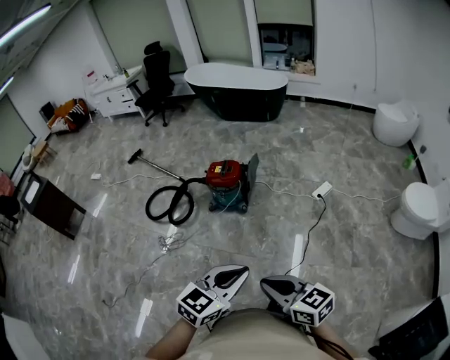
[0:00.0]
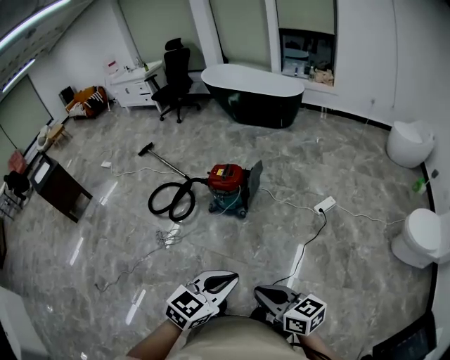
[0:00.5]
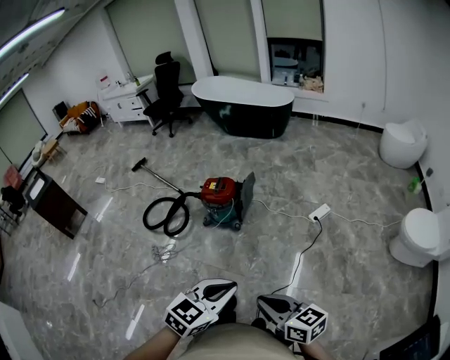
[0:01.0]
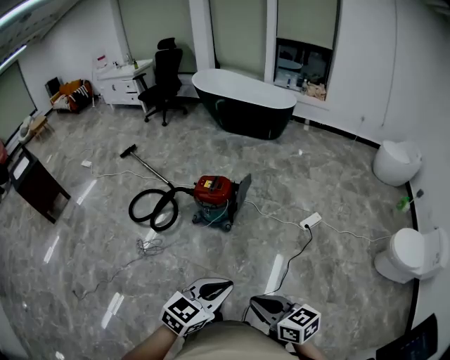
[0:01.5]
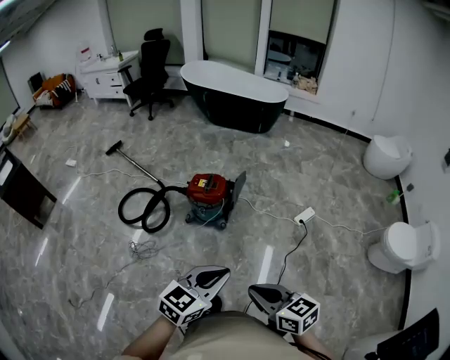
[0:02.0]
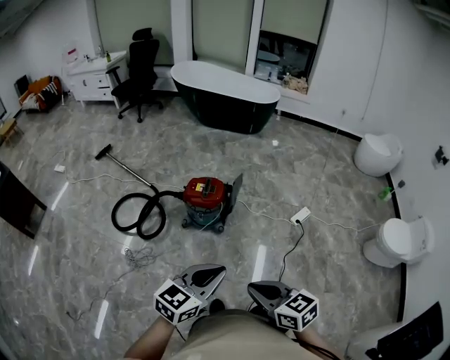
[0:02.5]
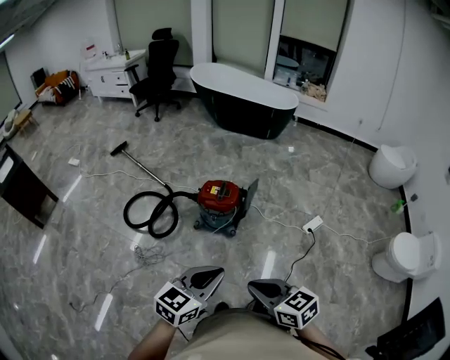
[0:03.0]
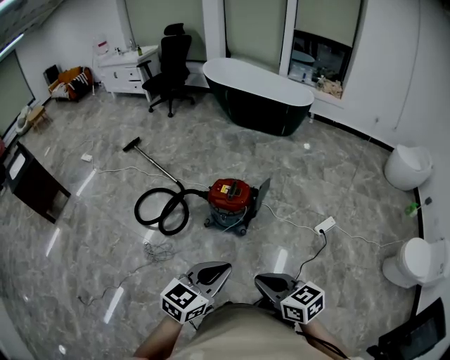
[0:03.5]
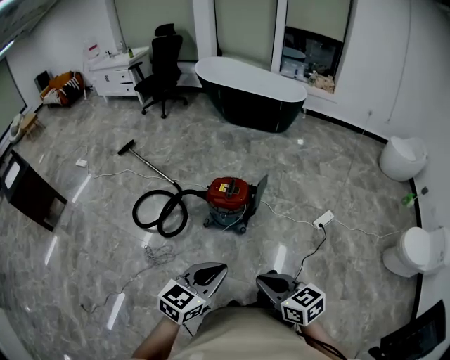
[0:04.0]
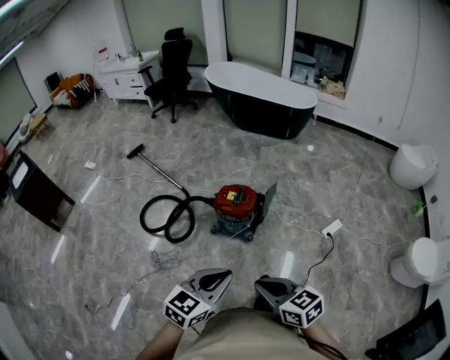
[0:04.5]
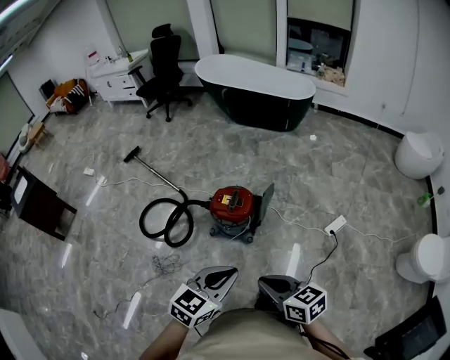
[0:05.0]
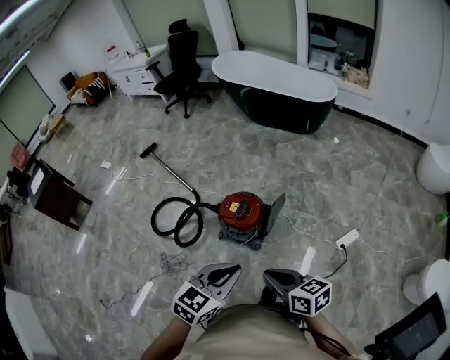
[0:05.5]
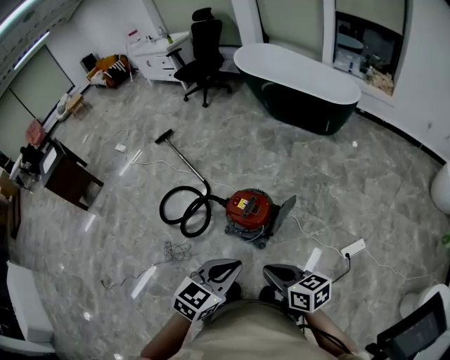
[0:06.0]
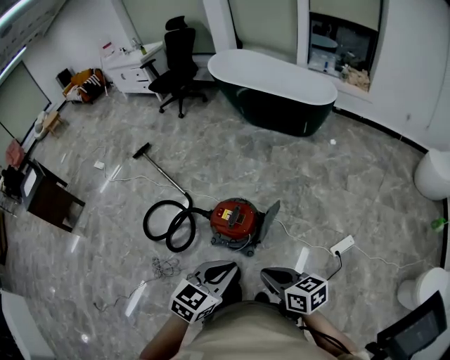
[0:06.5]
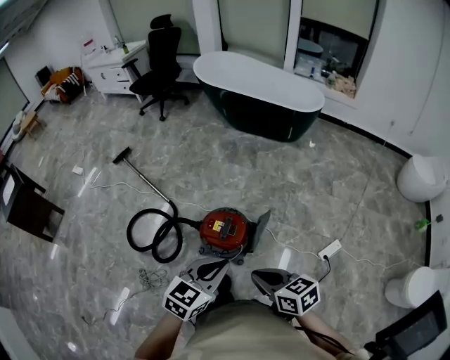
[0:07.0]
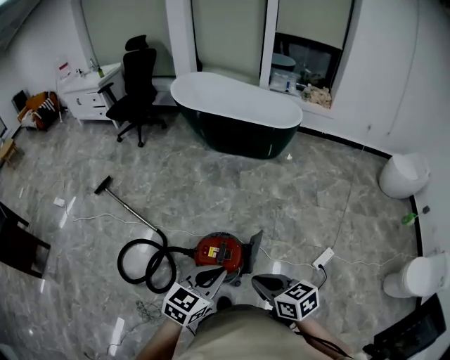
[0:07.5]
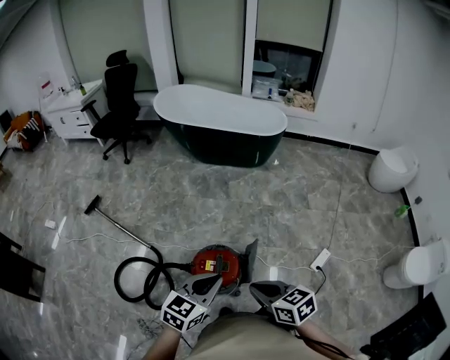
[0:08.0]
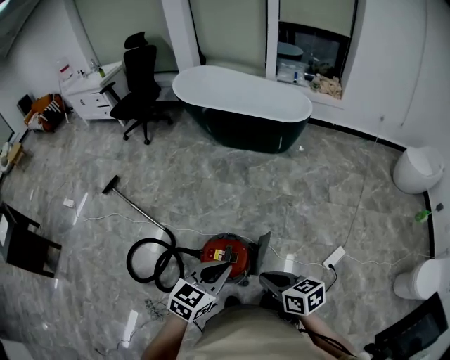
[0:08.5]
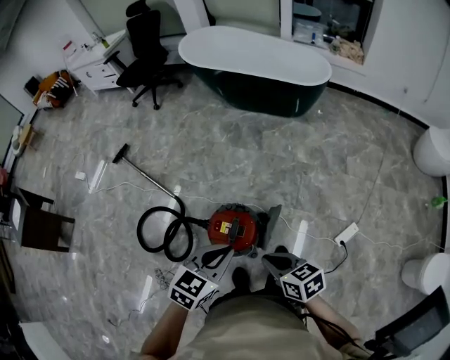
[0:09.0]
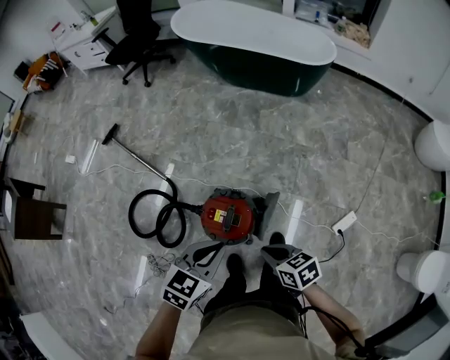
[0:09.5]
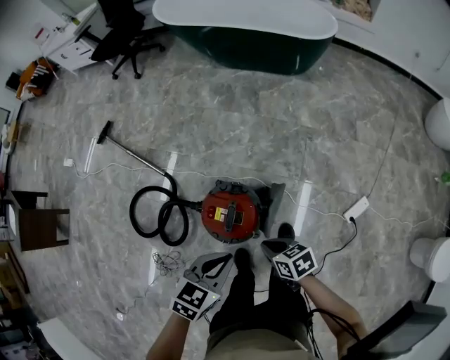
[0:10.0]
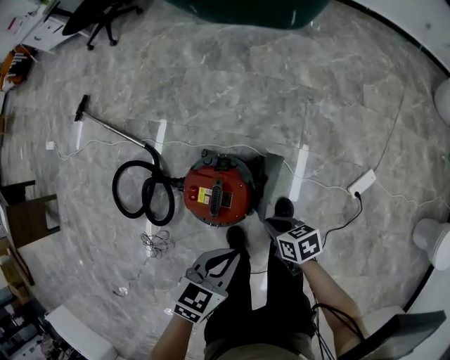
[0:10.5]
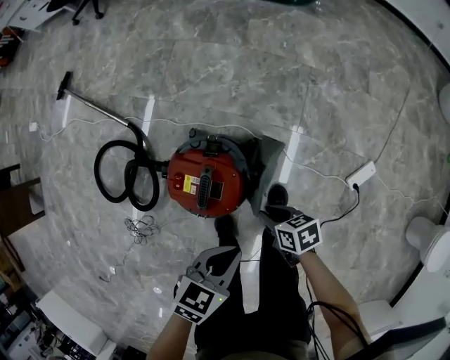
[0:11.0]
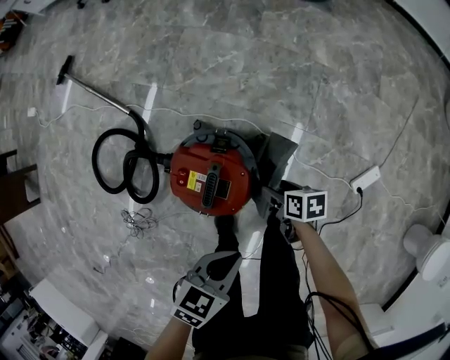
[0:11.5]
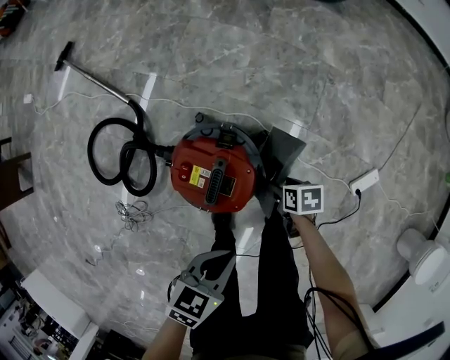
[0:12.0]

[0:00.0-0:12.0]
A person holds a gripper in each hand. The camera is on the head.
0.0 to 2.0 s: The grippers both shift forward by approximately 15 cm.
2.0 to 4.0 s: The right gripper goes some 15 cm forward and to the left. Meanwhile the left gripper is displaced to the left and forward by some 15 cm.
4.0 to 6.0 s: Both grippers travel together forward and to the right, about 25 cm.
6.0 to 8.0 s: Both grippers travel together forward and to the left, roughly 20 cm. The left gripper changes its angle by about 20 degrees. Meanwhile the right gripper turns by some 20 degrees.
8.0 to 10.0 s: The left gripper shifts approximately 15 cm downward and to the right, and changes its angle by roughly 20 degrees, while the right gripper shifts some 25 cm downward, and rotates roughly 30 degrees.
10.0 to 12.0 s: Both grippers travel together downward, some 25 cm. The right gripper turns by about 30 degrees, and opens up.

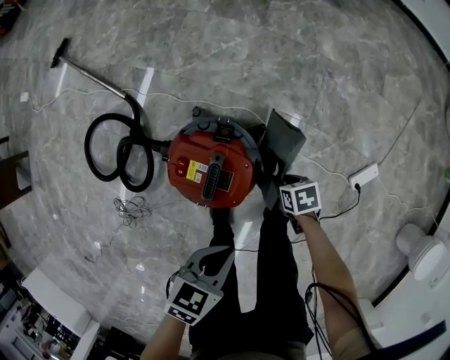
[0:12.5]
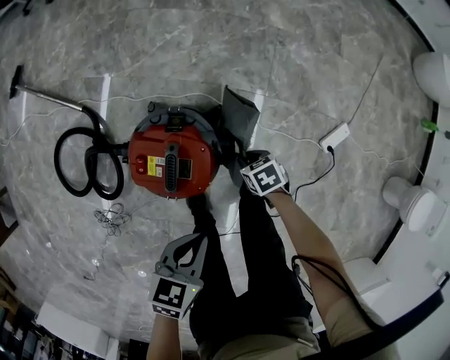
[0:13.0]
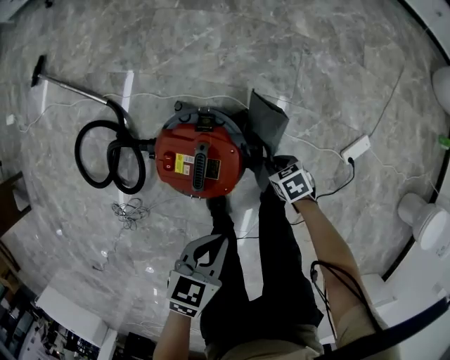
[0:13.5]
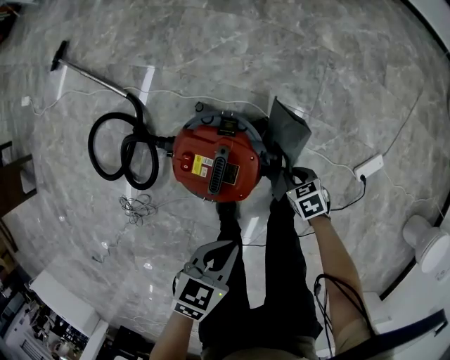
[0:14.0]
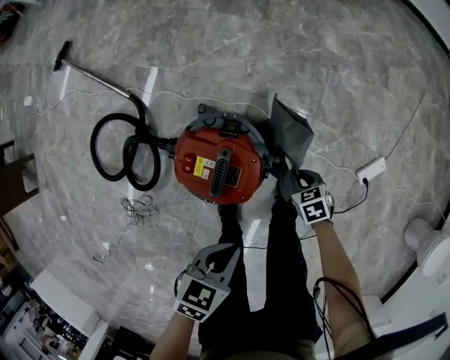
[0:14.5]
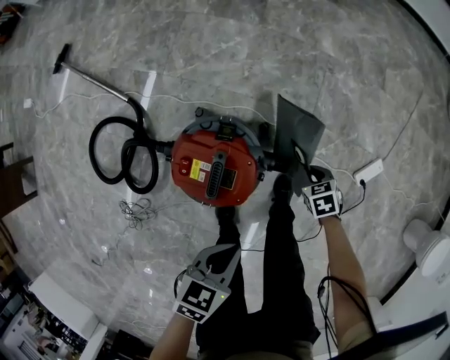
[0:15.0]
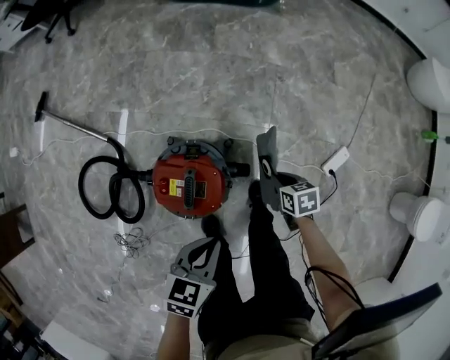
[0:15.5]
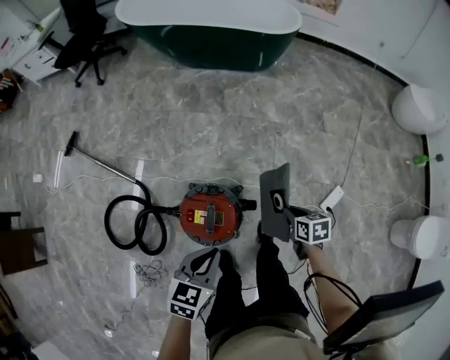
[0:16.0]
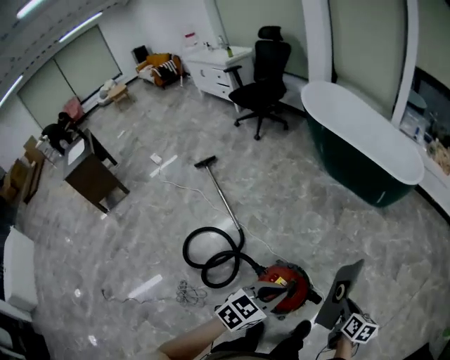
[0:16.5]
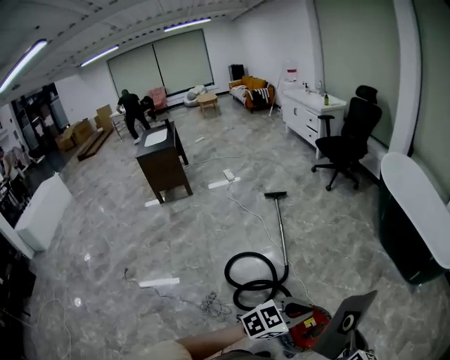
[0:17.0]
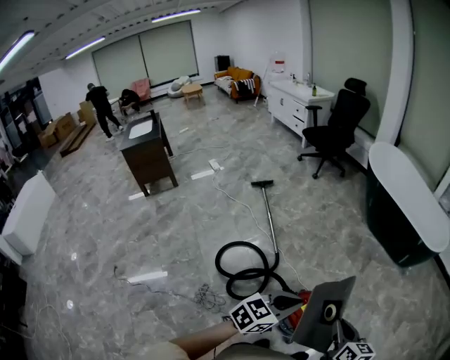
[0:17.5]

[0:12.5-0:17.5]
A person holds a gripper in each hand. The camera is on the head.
12.5 to 15.0 s: The right gripper changes place by roughly 10 cm, and swivels approximately 20 degrees.
15.0 to 17.5 s: The grippers both shift upward by some 50 cm. The left gripper changes its angle by approximately 40 degrees; the right gripper tilts its fingers roughly 50 degrees upward.

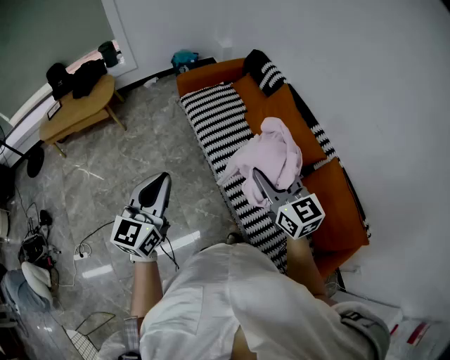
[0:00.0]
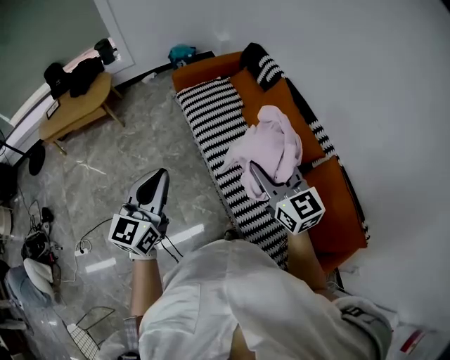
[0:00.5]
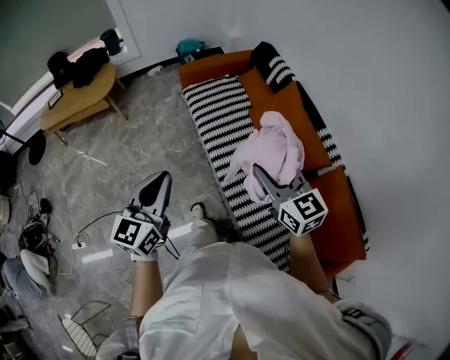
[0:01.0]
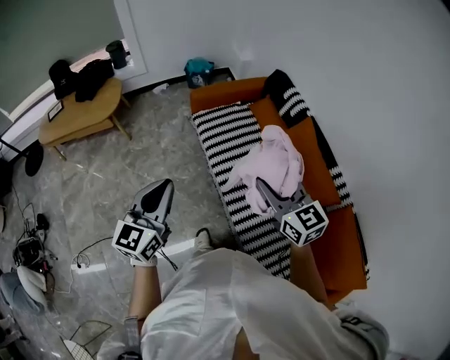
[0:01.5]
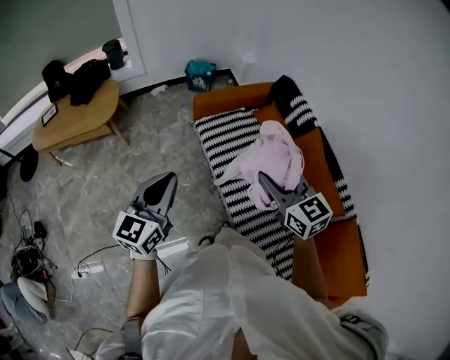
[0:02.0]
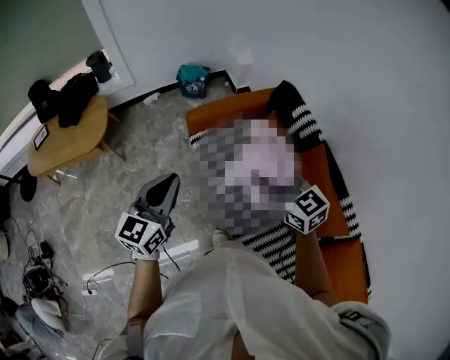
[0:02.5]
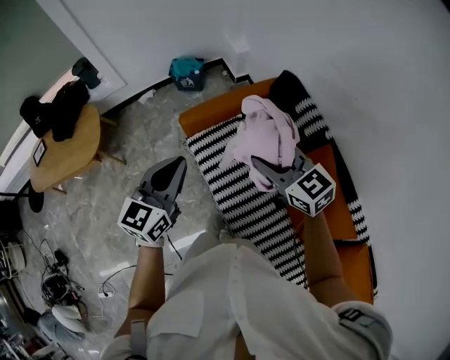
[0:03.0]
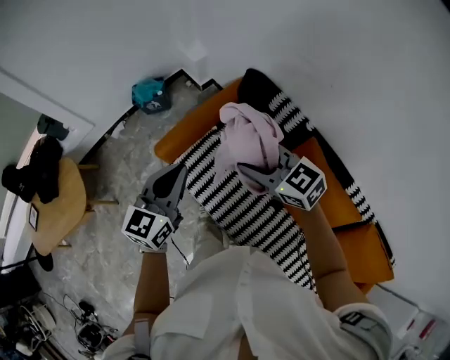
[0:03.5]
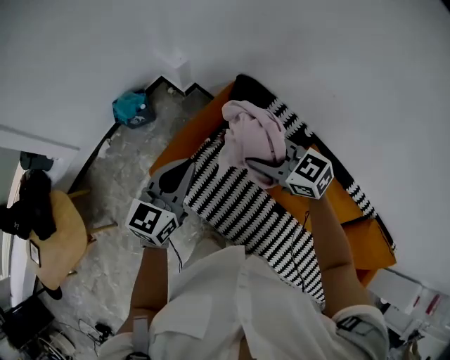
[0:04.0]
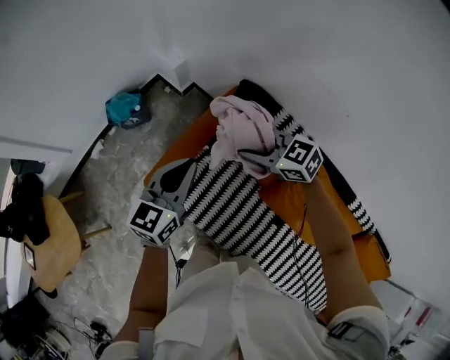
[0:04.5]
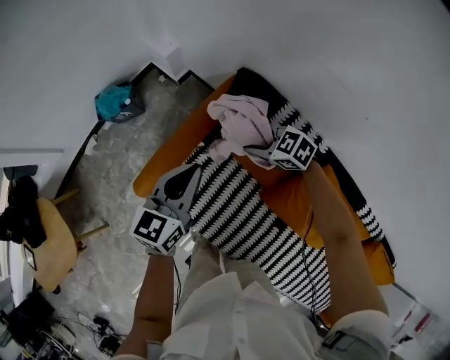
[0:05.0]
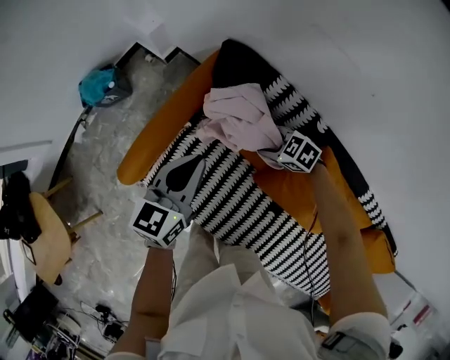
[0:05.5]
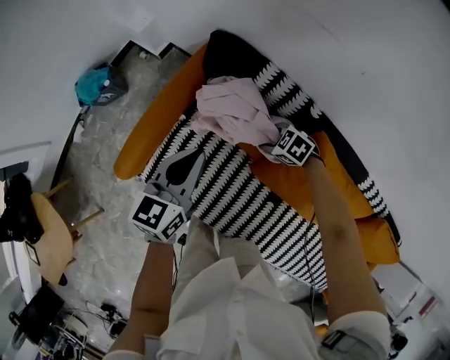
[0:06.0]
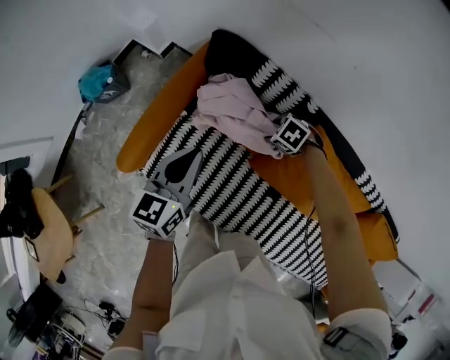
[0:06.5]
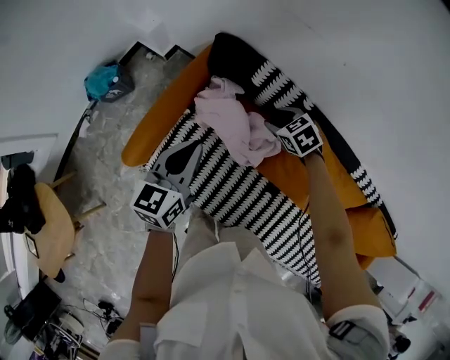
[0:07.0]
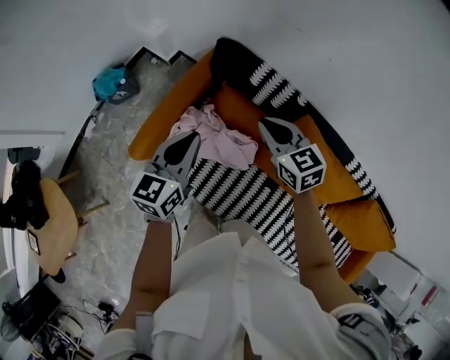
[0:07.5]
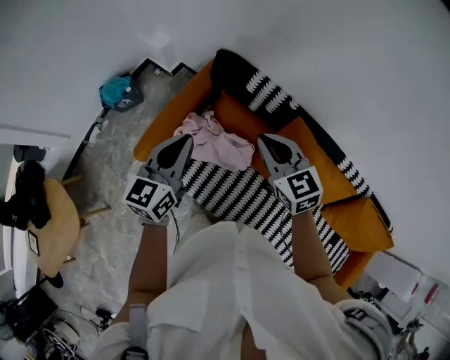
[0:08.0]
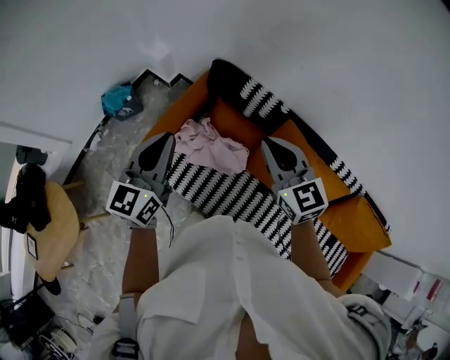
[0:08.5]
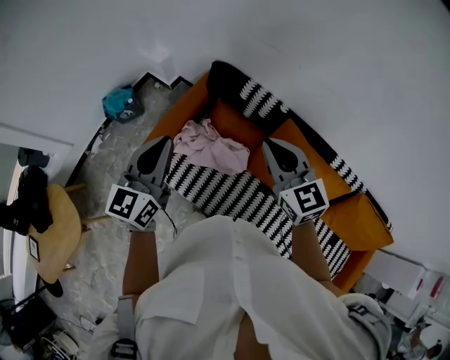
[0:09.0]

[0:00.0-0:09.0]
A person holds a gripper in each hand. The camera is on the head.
0.0 to 2.0 s: Both grippers move forward, roughly 30 cm.
2.0 to 4.5 s: Both grippers are carried forward, roughly 60 cm. The left gripper swivels roughly 30 degrees.
4.5 to 7.0 s: The left gripper shifts by about 15 cm. Meanwhile the right gripper changes place by roughly 25 cm, and turns by about 40 degrees.
7.0 to 9.0 s: The right gripper travels upward and backward by roughly 40 cm, tilts its fingers roughly 50 degrees upward, and closes up. Meanwhile the left gripper moves upward and backward, some 20 cm.

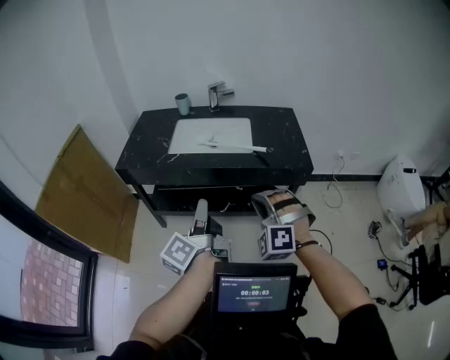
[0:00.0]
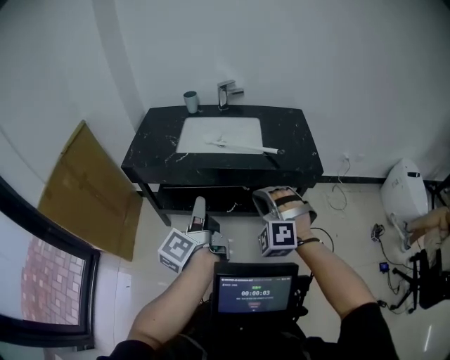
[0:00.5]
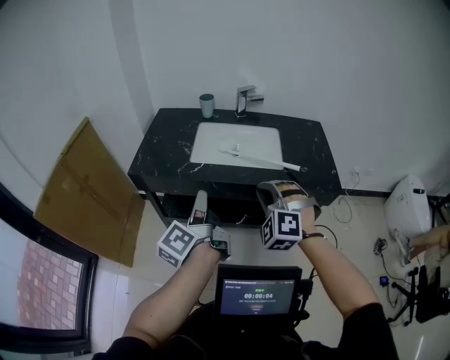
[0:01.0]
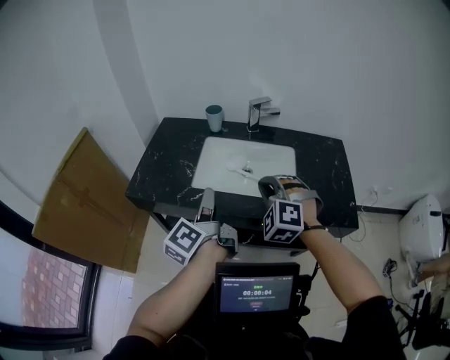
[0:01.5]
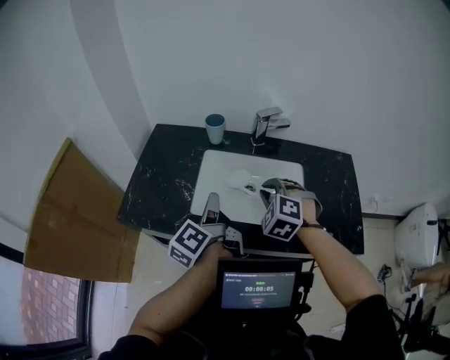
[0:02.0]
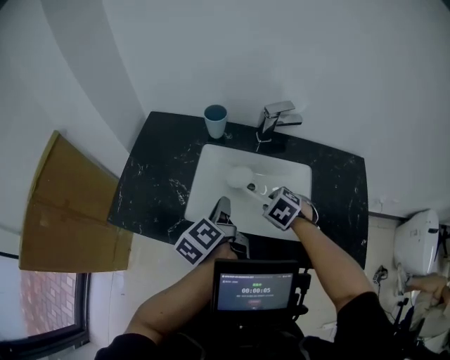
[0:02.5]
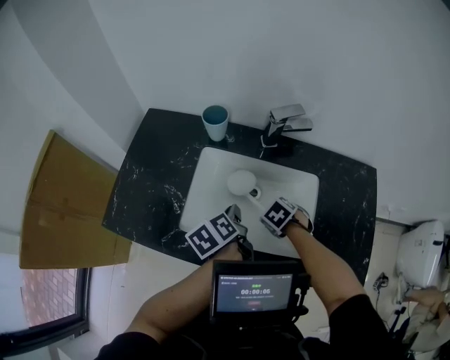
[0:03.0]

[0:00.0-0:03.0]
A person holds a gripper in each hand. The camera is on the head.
0.0 to 1.5 s: The two grippers go some 35 cm forward.
1.5 to 3.0 s: The left gripper shifts by approximately 35 cm, and tips its fingers downward by about 40 degrees. Meanwhile the right gripper travels downward by some 25 cm, tilts its fingers some 50 degrees downward, and opens its fingers.
